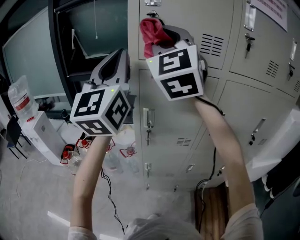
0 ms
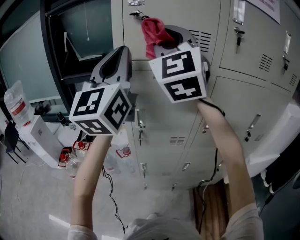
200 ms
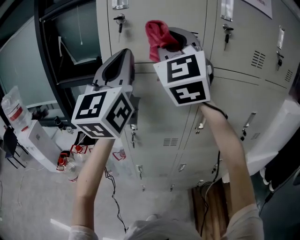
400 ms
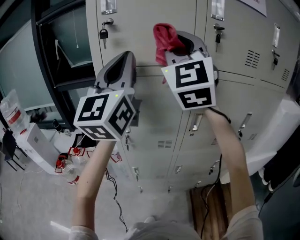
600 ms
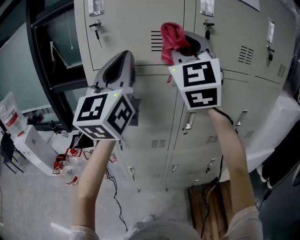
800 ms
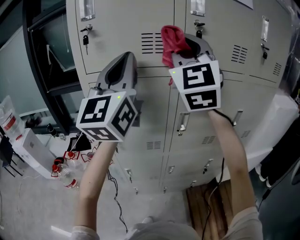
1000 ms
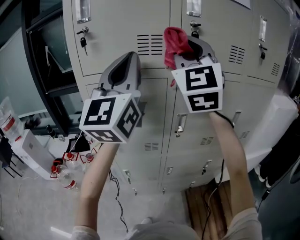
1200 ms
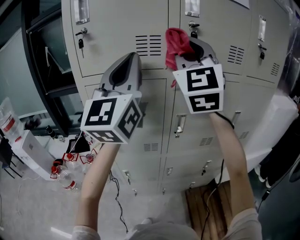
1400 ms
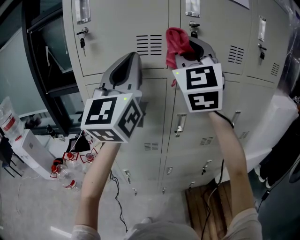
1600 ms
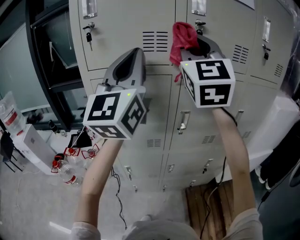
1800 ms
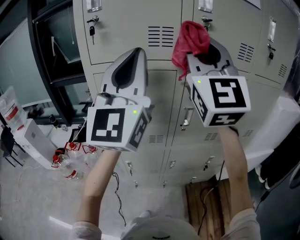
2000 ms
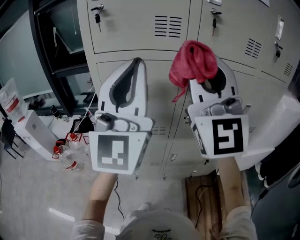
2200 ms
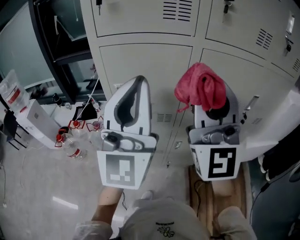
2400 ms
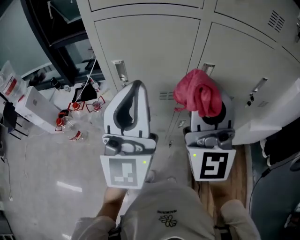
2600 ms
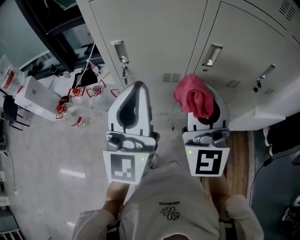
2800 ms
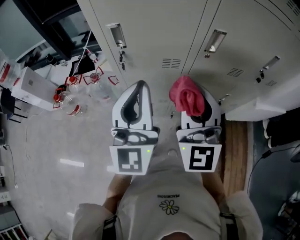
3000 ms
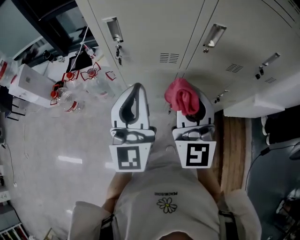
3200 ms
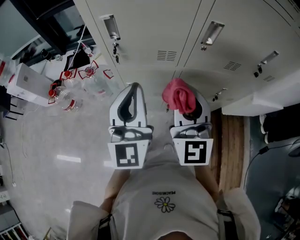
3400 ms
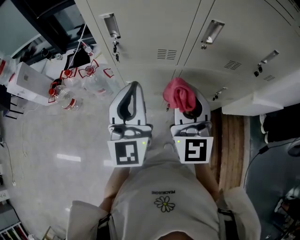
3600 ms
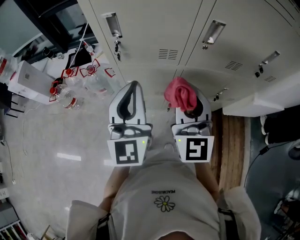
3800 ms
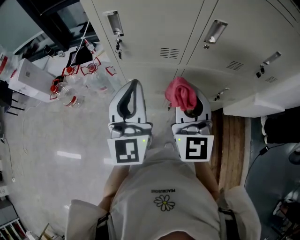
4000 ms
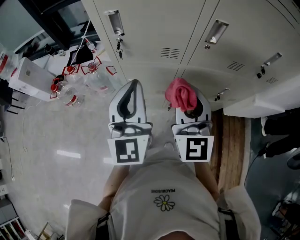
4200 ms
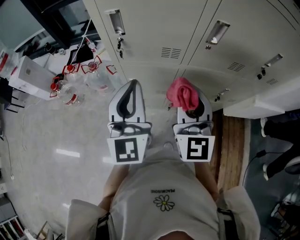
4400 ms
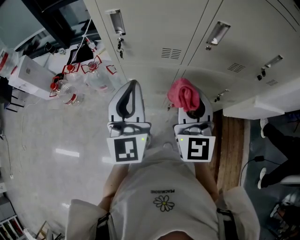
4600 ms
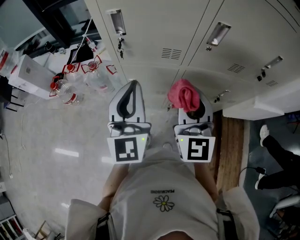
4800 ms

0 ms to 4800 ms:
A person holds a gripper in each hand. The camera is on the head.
0 ms to 1600 ms: Both grippers move to the right, some 20 cm.
1600 ms to 3200 ms: The left gripper is displaced downward by some 30 cm, and rotates some 20 degrees; the right gripper heads downward and backward, covering some 40 cm, and rotates some 30 degrees.
3200 ms to 4800 ms: The grippers stay close to where they were, moving slightly.

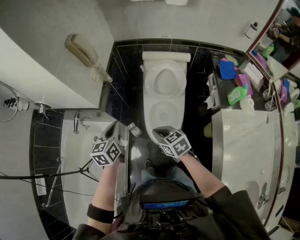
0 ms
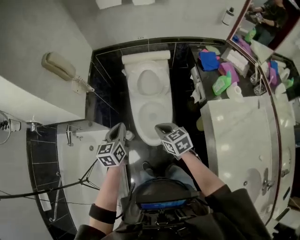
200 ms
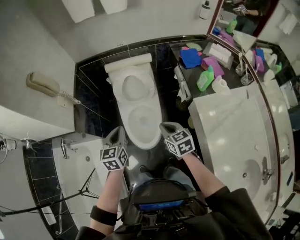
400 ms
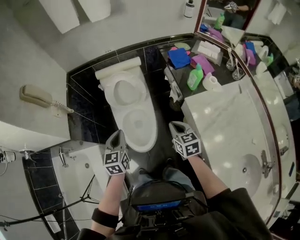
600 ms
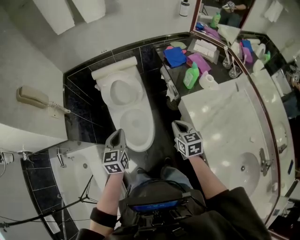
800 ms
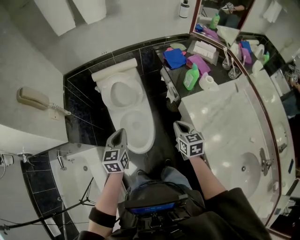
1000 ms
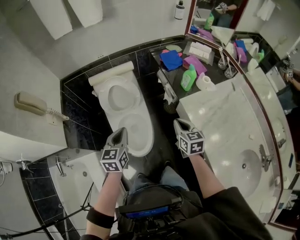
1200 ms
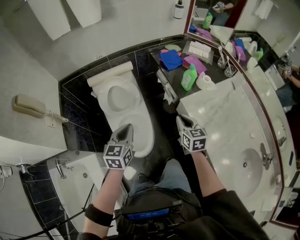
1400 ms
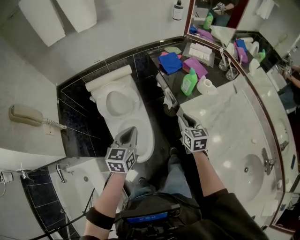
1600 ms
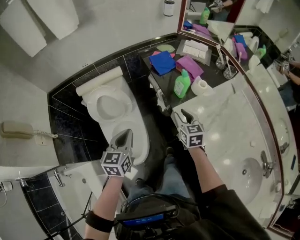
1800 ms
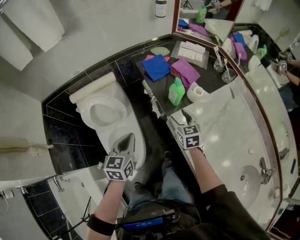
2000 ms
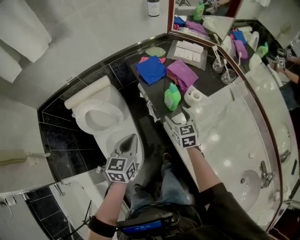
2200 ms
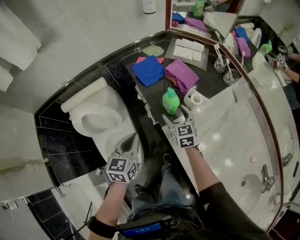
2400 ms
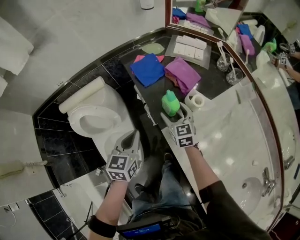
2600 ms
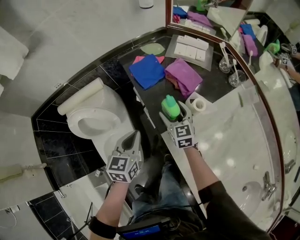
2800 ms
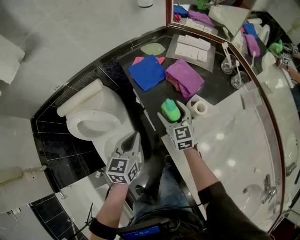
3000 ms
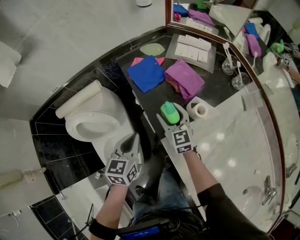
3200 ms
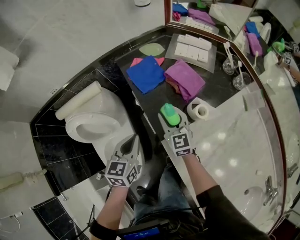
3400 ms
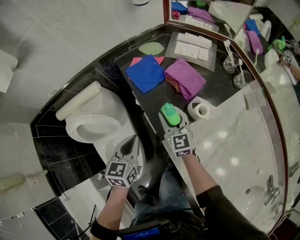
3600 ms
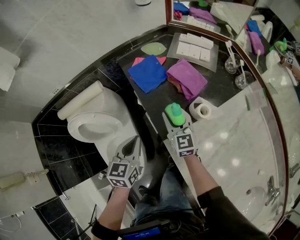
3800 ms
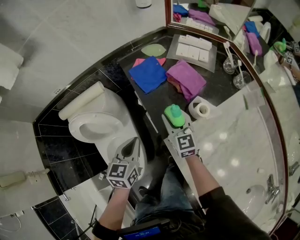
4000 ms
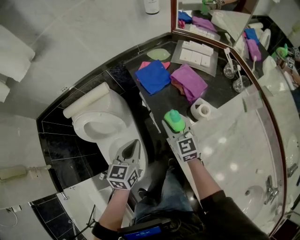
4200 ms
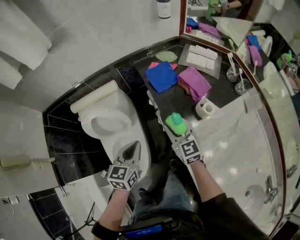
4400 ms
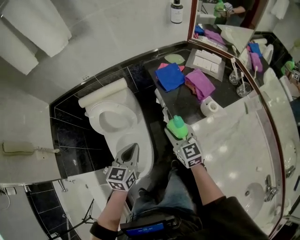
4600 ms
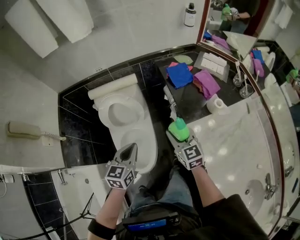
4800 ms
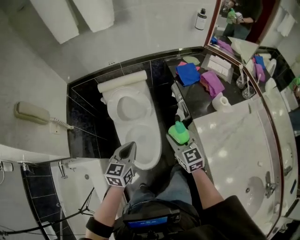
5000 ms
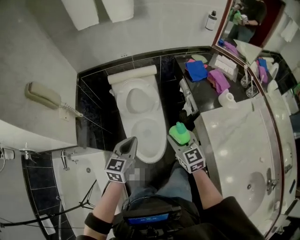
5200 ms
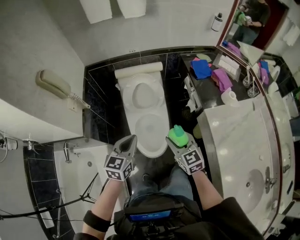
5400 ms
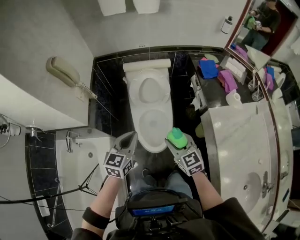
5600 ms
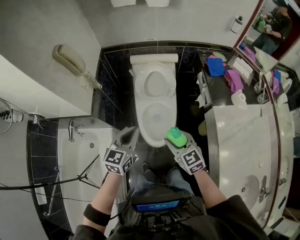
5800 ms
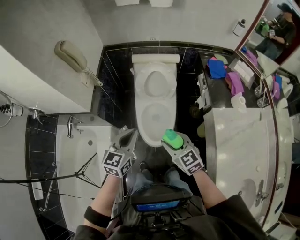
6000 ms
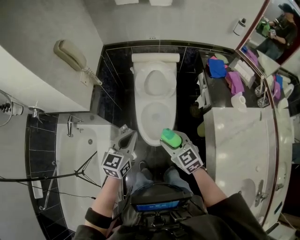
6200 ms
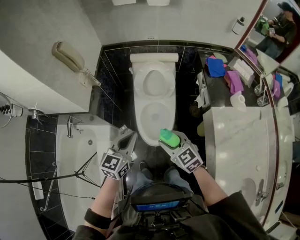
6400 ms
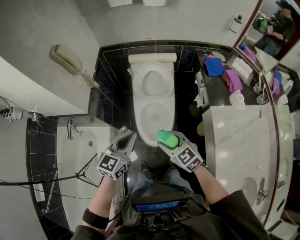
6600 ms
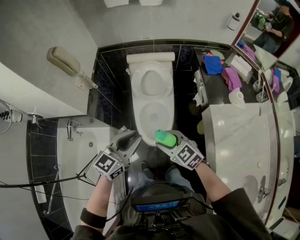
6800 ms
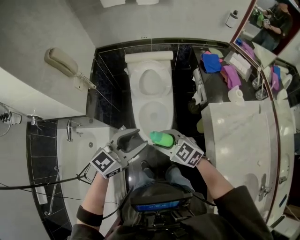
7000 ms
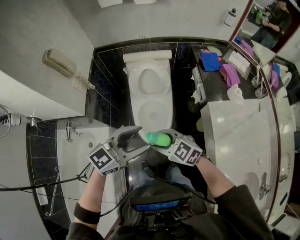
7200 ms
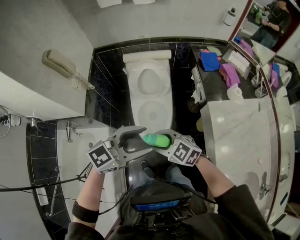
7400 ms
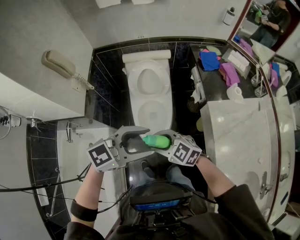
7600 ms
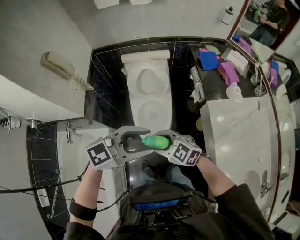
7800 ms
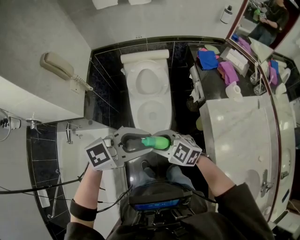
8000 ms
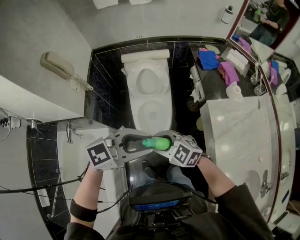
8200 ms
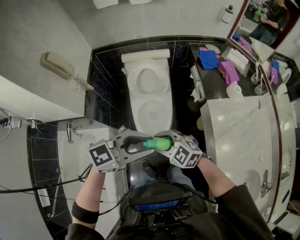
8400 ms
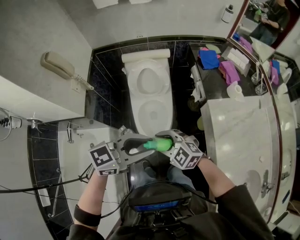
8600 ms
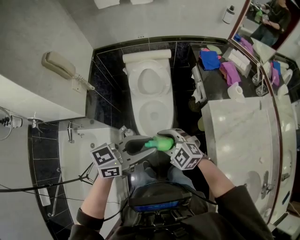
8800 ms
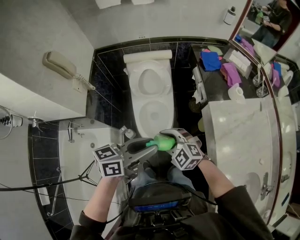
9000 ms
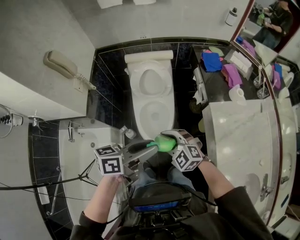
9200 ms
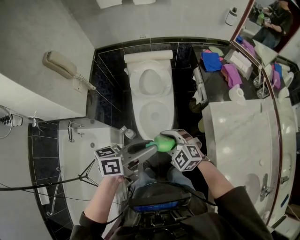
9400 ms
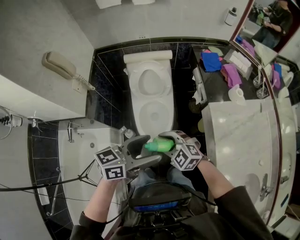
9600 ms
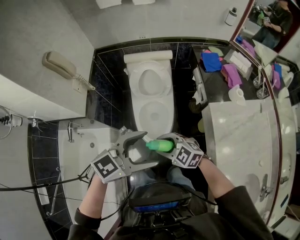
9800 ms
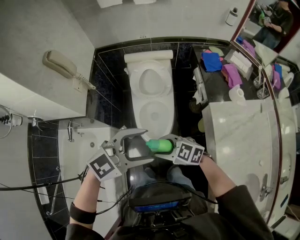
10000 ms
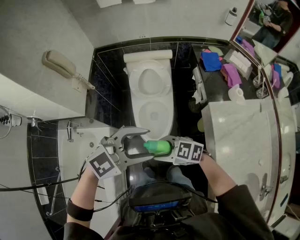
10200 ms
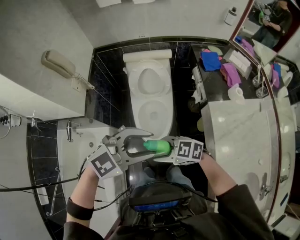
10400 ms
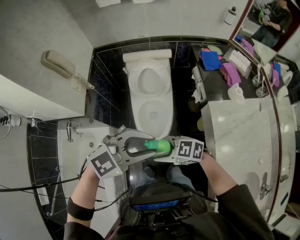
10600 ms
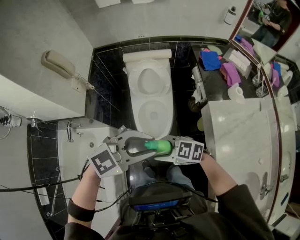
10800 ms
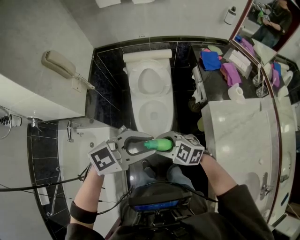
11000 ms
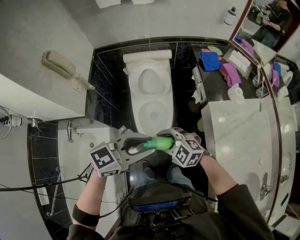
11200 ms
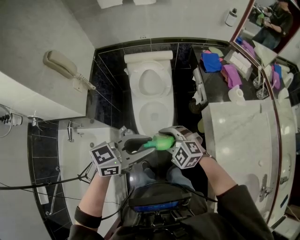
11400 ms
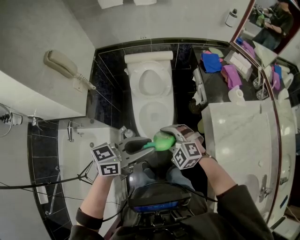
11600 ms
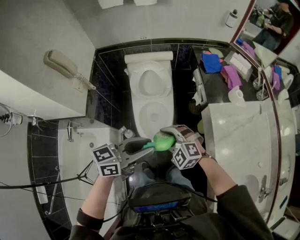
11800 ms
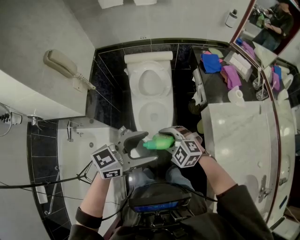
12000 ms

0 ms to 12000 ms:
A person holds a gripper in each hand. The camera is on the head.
0 ms to 1600 ms: The left gripper changes place by roughly 30 cm, and rotates roughly 40 degrees; the right gripper moves approximately 40 cm, and swivels some 50 degrees.
1600 ms to 3000 ms: The right gripper heads forward, covering about 30 cm, and opens its fingers, while the left gripper moves forward, to the right and downward, roughly 30 cm.
3000 ms to 4400 ms: The right gripper goes about 15 cm backward, upward and to the left, and closes up. The left gripper travels backward and to the left by some 10 cm.
4400 ms to 6000 ms: The pair of grippers is taken about 40 cm. The right gripper swivels roughly 40 degrees.
6000 ms to 7600 ms: The right gripper turns by approximately 30 degrees, while the left gripper shifts by roughly 20 cm, turns by some 50 degrees, and opens its fingers.
7600 ms to 9000 ms: The left gripper turns by about 40 degrees.
9000 ms to 10400 ms: The left gripper twists some 60 degrees clockwise, seen from behind, and opens, then closes once more, while the right gripper changes place by some 10 cm, and changes its angle by approximately 40 degrees.
10400 ms to 12000 ms: The left gripper rotates some 40 degrees, while the right gripper moves about 10 cm, and swivels some 40 degrees.

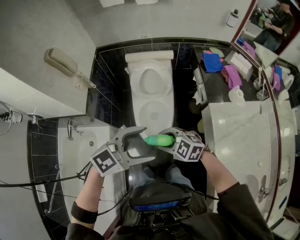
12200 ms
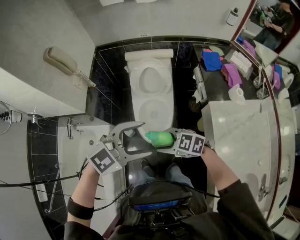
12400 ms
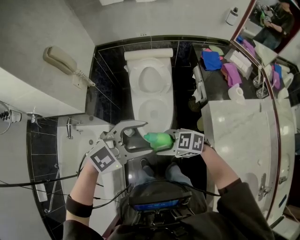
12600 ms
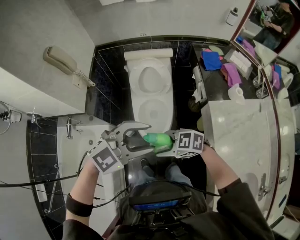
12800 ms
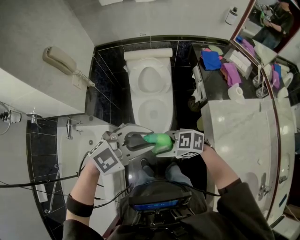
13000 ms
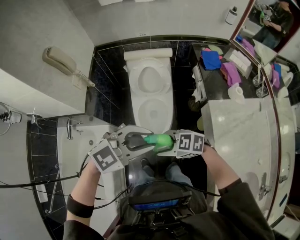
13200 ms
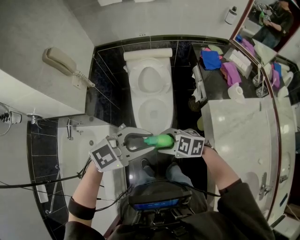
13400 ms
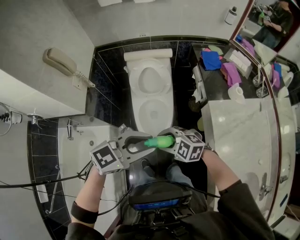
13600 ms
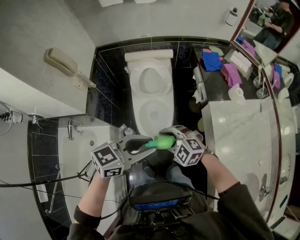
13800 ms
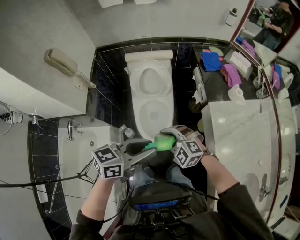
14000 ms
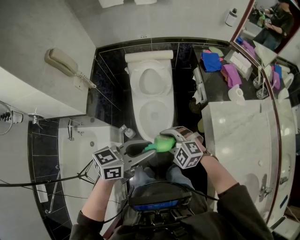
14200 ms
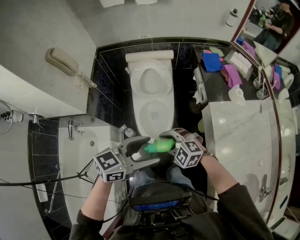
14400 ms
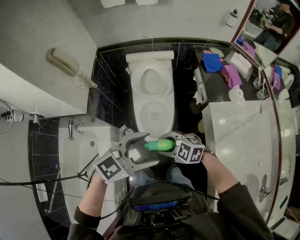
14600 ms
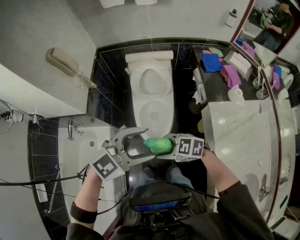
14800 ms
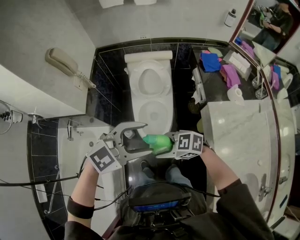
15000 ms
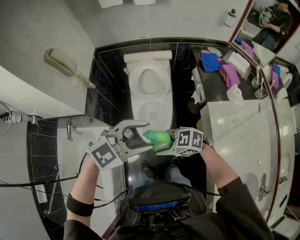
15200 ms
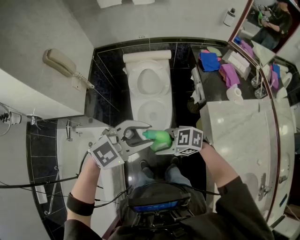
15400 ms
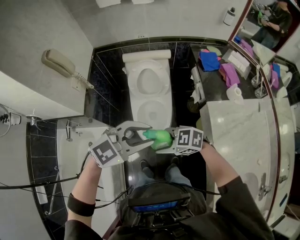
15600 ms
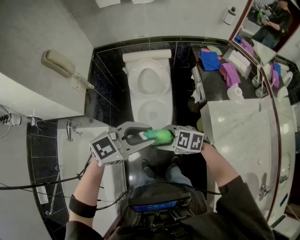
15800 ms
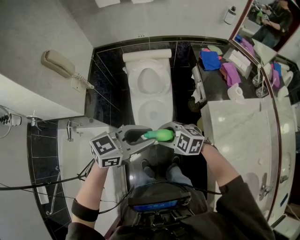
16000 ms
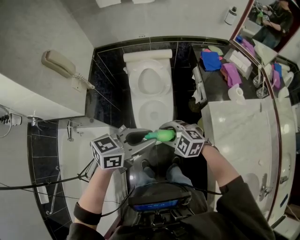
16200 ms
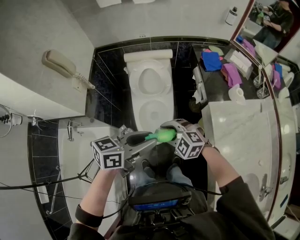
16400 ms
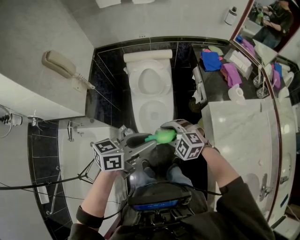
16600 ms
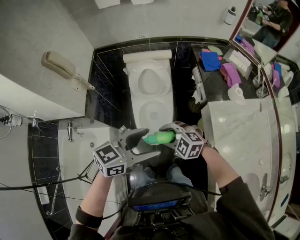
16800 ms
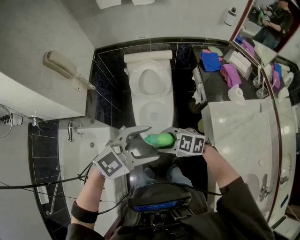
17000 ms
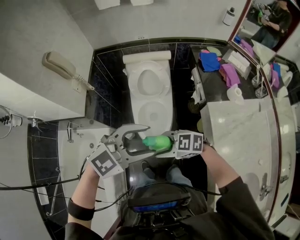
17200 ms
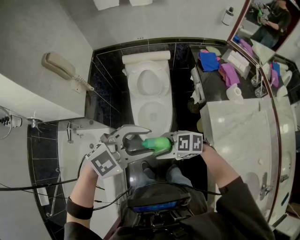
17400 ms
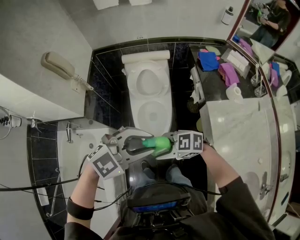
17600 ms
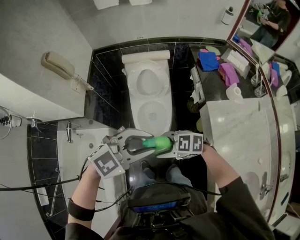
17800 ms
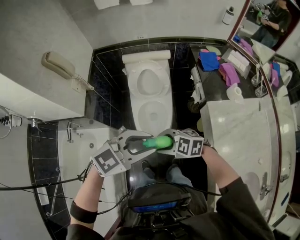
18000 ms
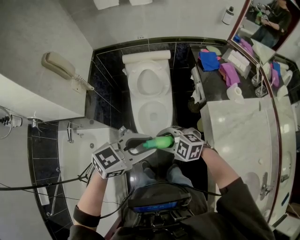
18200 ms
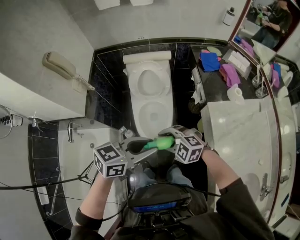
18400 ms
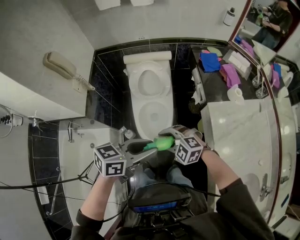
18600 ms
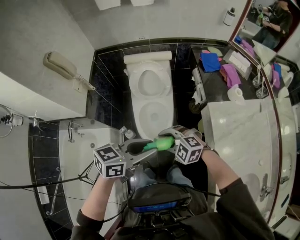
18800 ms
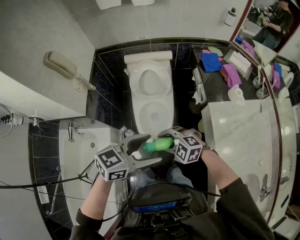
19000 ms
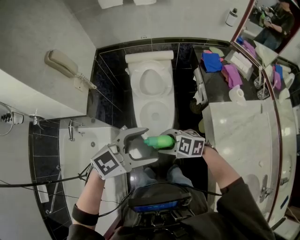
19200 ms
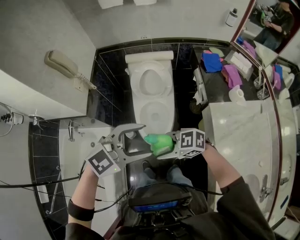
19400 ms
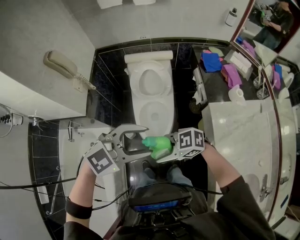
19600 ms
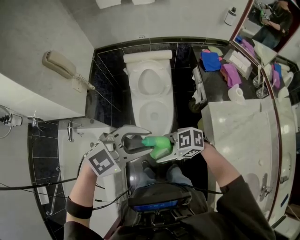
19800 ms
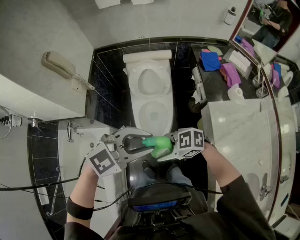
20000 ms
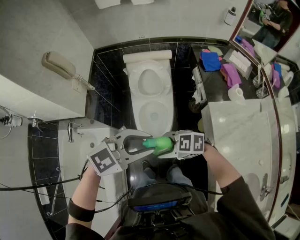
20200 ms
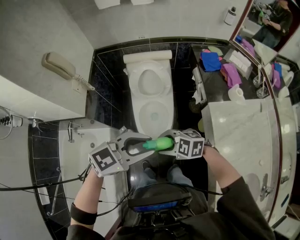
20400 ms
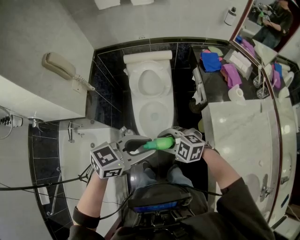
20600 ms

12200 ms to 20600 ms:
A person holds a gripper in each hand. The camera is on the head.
12200 ms to 13600 ms: The left gripper closes its fingers.
13600 ms to 15000 ms: The left gripper swivels roughly 20 degrees, and opens, while the right gripper swivels some 30 degrees.
15000 ms to 16400 ms: The right gripper shifts by approximately 10 cm, and rotates about 40 degrees, while the left gripper moves downward, about 5 cm, rolls counterclockwise, seen from behind, by approximately 60 degrees, and closes its fingers.
16400 ms to 17800 ms: The right gripper ends up about 10 cm from where it was, and rotates approximately 30 degrees, while the left gripper changes place by roughly 5 cm, rotates around the line of its fingers by about 60 degrees, clockwise from behind, and opens and closes again.
17800 ms to 19200 ms: The left gripper opens.
19200 ms to 20600 ms: The left gripper closes.
